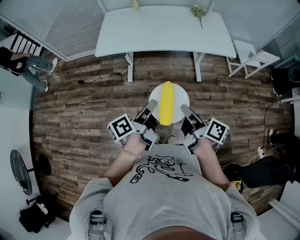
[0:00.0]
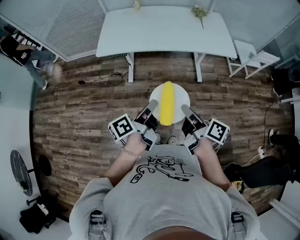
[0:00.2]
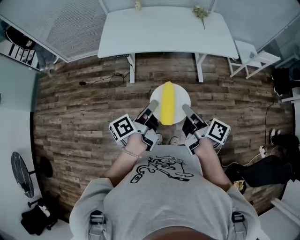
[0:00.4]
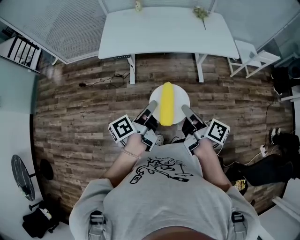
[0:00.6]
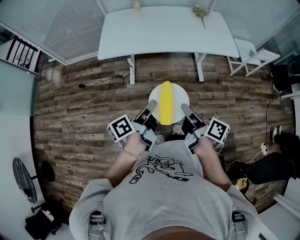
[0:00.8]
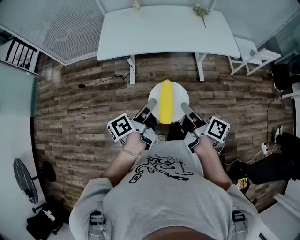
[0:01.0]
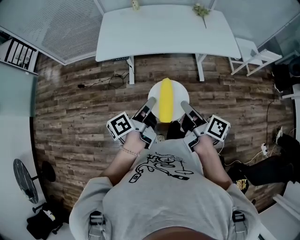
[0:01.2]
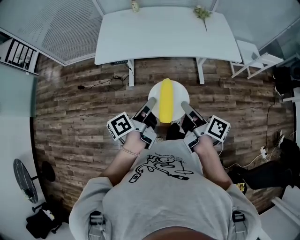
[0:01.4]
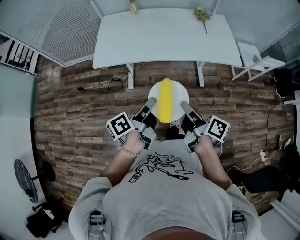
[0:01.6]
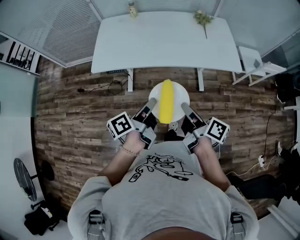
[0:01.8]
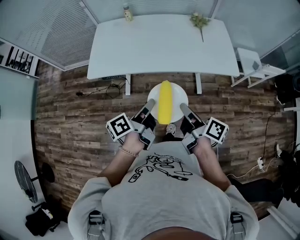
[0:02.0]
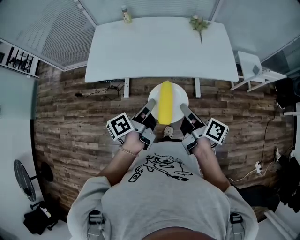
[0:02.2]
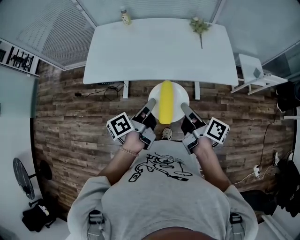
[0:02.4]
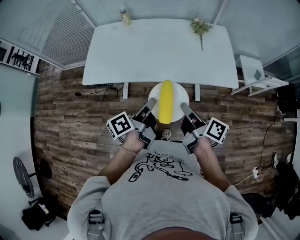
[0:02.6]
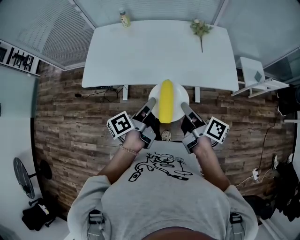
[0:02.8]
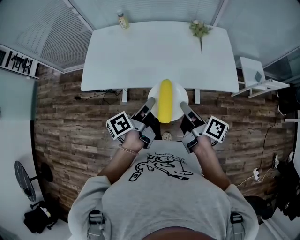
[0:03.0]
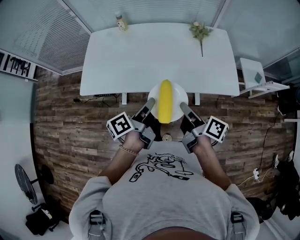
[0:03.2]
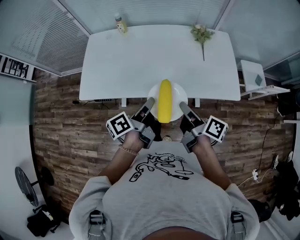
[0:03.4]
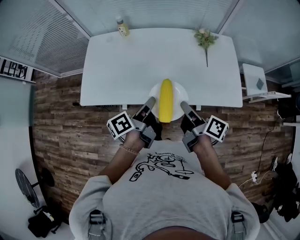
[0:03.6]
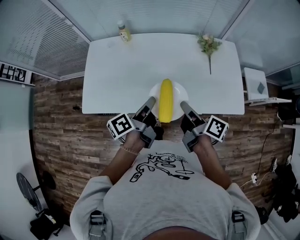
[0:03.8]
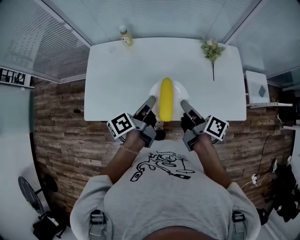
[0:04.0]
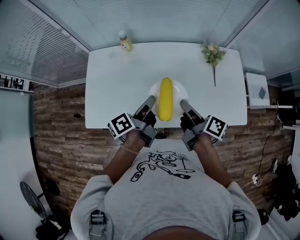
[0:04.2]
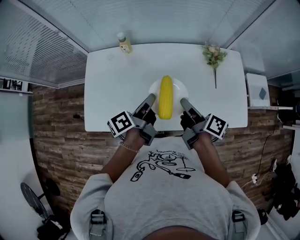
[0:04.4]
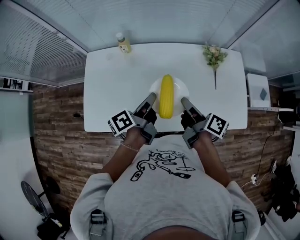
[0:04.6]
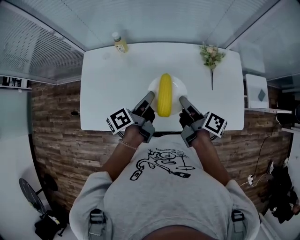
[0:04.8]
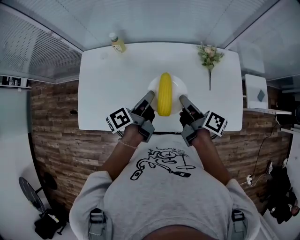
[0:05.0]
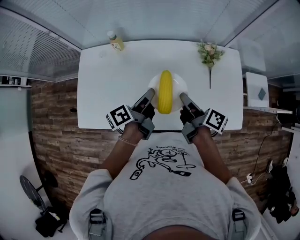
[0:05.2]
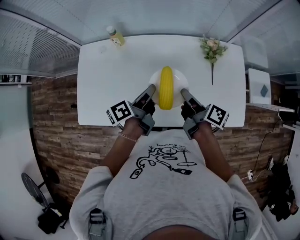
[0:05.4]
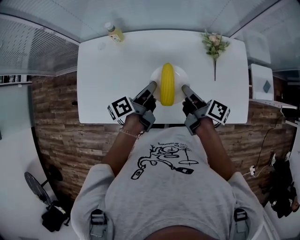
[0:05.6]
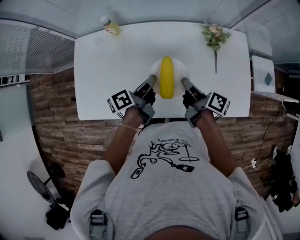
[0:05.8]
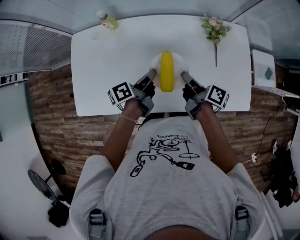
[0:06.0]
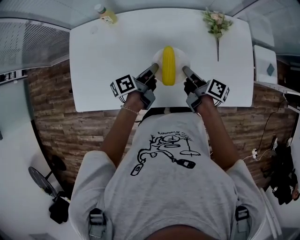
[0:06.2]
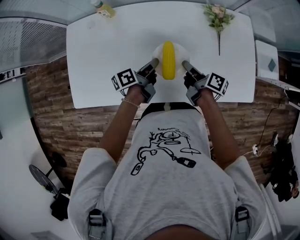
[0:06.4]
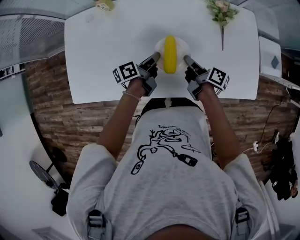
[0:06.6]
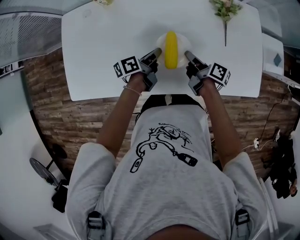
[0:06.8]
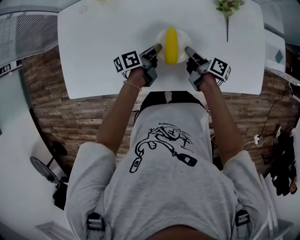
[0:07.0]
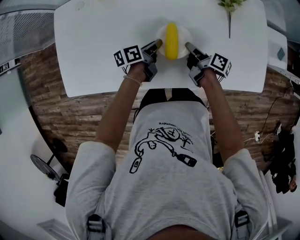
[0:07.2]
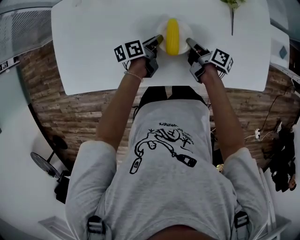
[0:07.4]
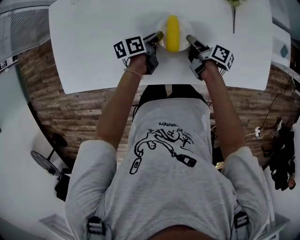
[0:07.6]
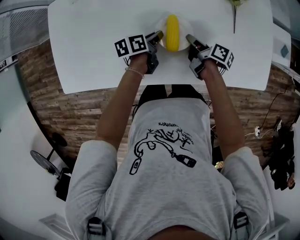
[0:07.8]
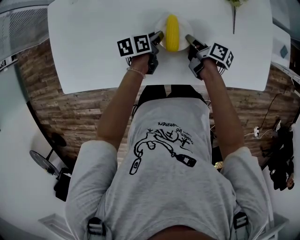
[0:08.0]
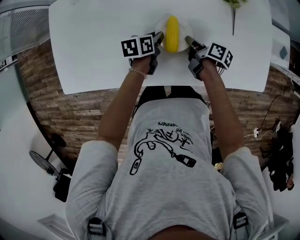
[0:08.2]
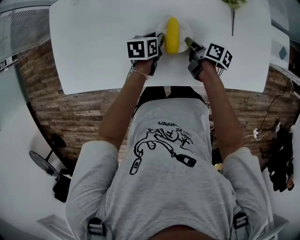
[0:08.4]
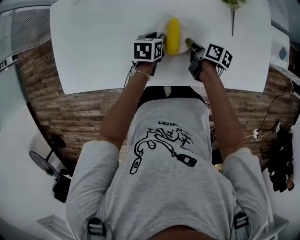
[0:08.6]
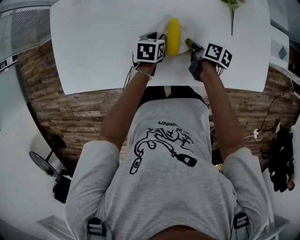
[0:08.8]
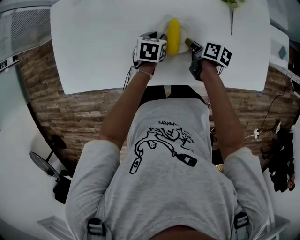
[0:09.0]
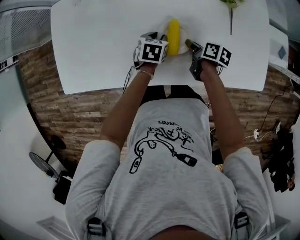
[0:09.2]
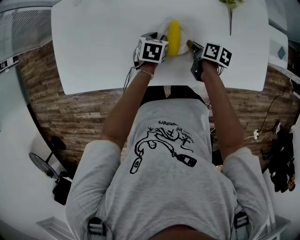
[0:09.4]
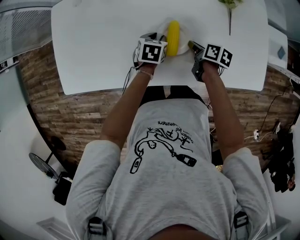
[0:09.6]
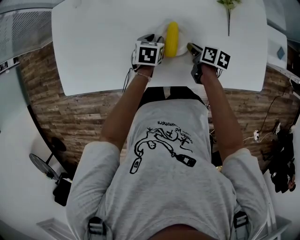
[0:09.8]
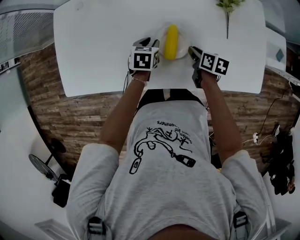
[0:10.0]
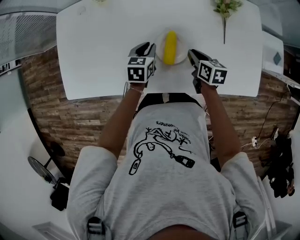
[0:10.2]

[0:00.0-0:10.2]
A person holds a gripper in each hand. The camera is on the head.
0:00.0 to 0:01.4: Both grippers move forward, roughly 10 cm.
0:01.4 to 0:03.0: The two grippers go about 30 cm forward and to the right.
0:03.0 to 0:04.4: The grippers both shift forward by some 30 cm.
0:04.4 to 0:05.8: The right gripper heads downward, to the right and forward, covering about 10 cm. The left gripper travels downward and to the right by some 10 cm.
0:05.8 to 0:07.2: The two grippers go about 20 cm downward.
0:07.2 to 0:08.8: The right gripper changes its angle by some 20 degrees. Meanwhile the left gripper rotates roughly 50 degrees.
0:08.8 to 0:10.2: The two grippers go some 5 cm upward. The right gripper turns by roughly 30 degrees.

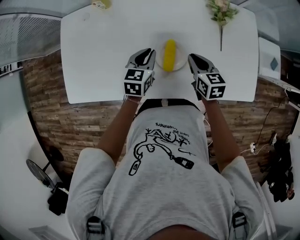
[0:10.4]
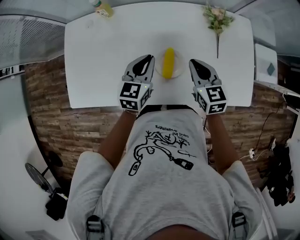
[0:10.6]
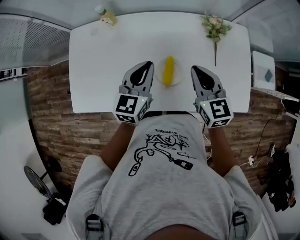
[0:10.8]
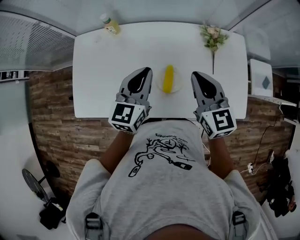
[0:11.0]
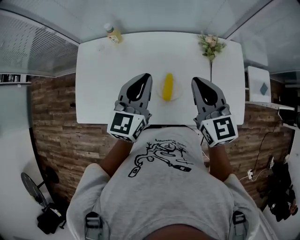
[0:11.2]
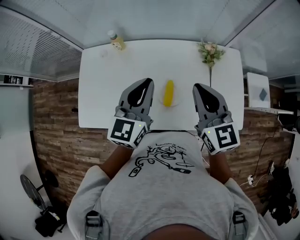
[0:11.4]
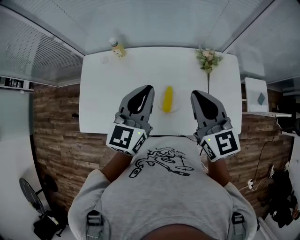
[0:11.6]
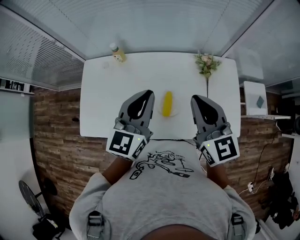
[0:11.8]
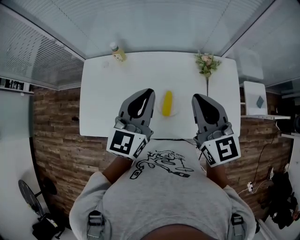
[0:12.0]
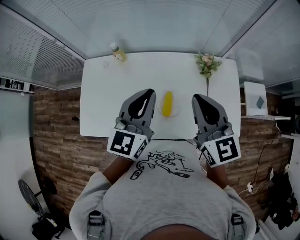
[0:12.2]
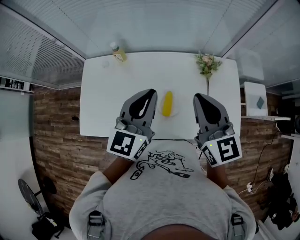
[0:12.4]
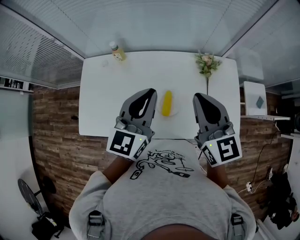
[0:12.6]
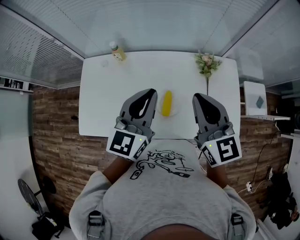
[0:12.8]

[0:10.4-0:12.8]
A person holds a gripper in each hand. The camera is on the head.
0:10.4 to 0:11.6: The grippers both shift upward by some 30 cm. The left gripper rotates approximately 30 degrees, while the right gripper changes its angle by about 30 degrees.
0:11.6 to 0:12.8: The grippers move only a little.

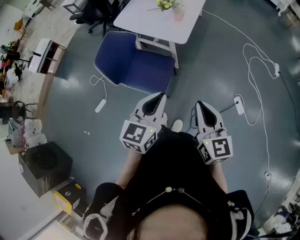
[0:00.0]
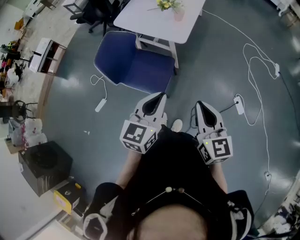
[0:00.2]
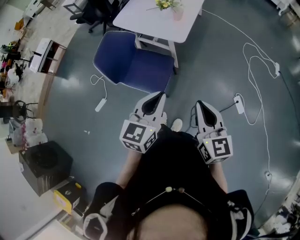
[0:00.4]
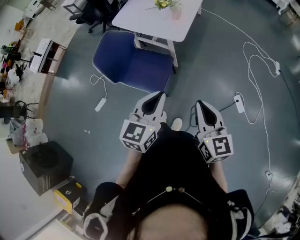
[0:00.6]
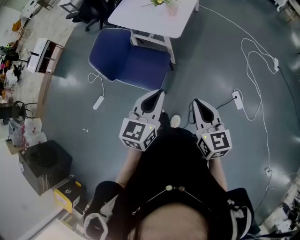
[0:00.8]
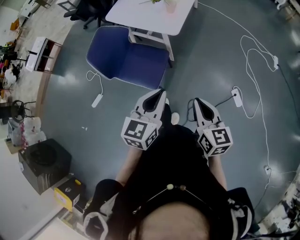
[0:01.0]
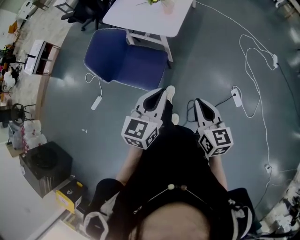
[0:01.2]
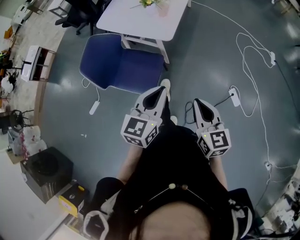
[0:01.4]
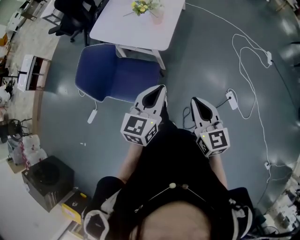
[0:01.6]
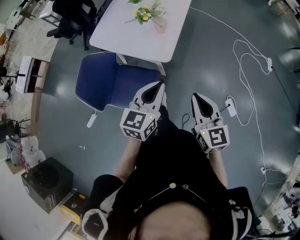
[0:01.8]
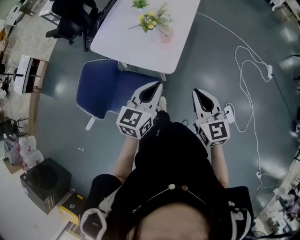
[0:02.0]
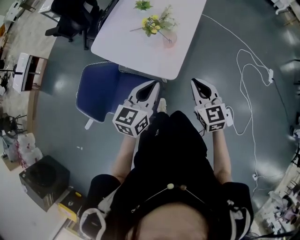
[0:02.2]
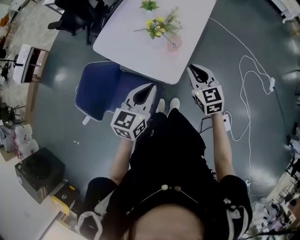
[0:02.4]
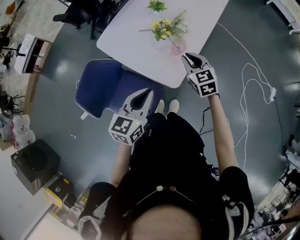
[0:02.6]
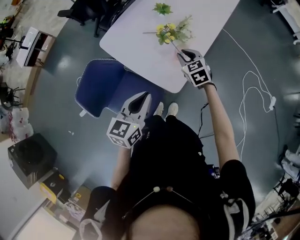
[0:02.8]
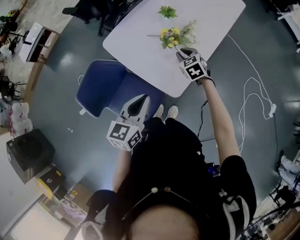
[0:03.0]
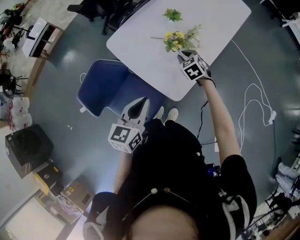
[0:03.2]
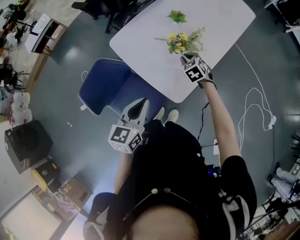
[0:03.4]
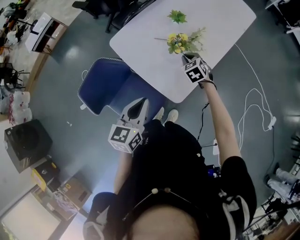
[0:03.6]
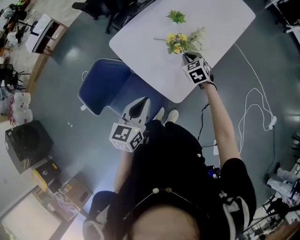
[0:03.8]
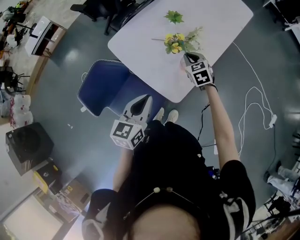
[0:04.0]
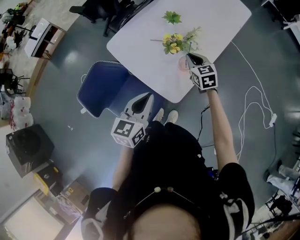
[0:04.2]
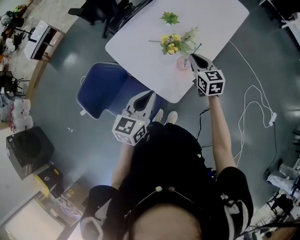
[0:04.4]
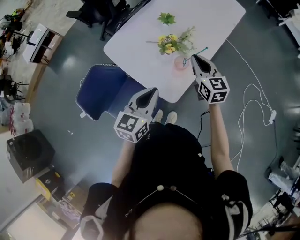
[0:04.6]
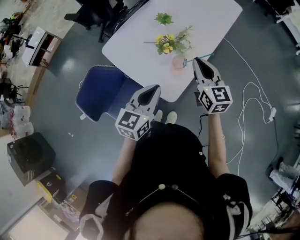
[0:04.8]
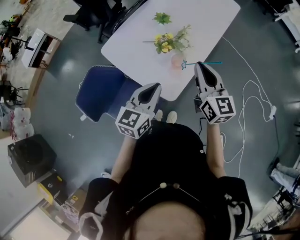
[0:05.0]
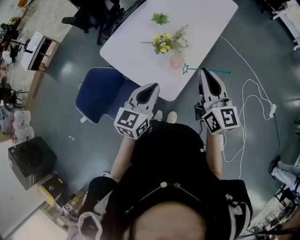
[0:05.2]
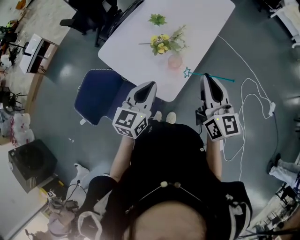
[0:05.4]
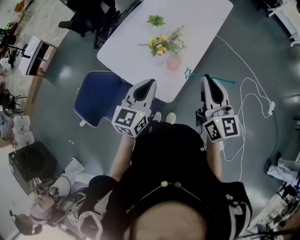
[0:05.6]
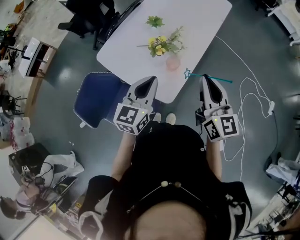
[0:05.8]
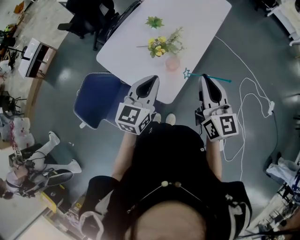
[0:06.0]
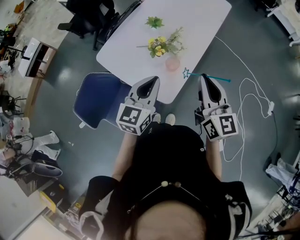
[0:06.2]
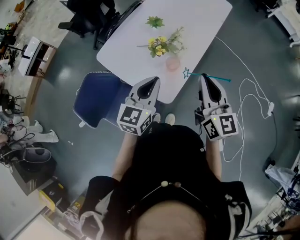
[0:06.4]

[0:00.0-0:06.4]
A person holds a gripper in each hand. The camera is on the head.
0:00.0 to 0:01.6: The right gripper moves forward, downward and to the right, roughly 15 cm, while the left gripper shifts roughly 15 cm forward and to the right.
0:01.6 to 0:03.2: The right gripper is displaced forward by about 50 cm, points its fingers some 30 degrees further downward, and opens up. The left gripper is displaced forward by about 25 cm, and rotates some 30 degrees.
0:03.2 to 0:04.8: The left gripper shifts about 5 cm to the right. The right gripper is displaced upward and to the right by roughly 20 cm, and tips its fingers upward by roughly 40 degrees.
0:04.8 to 0:06.4: The right gripper travels upward and backward by approximately 10 cm.

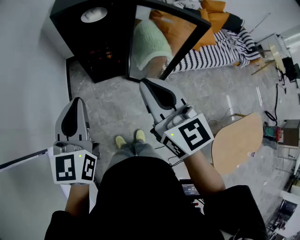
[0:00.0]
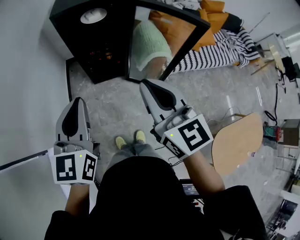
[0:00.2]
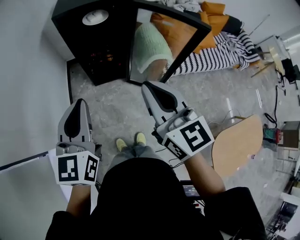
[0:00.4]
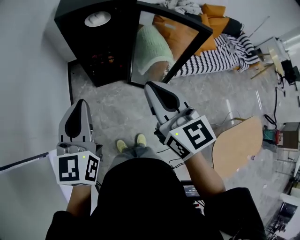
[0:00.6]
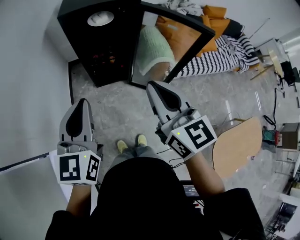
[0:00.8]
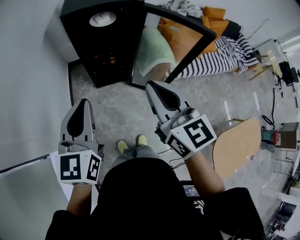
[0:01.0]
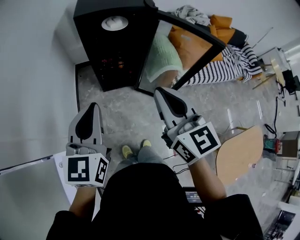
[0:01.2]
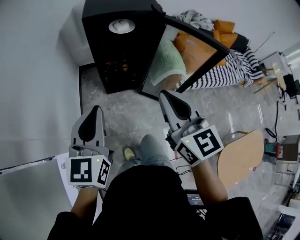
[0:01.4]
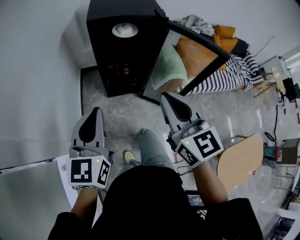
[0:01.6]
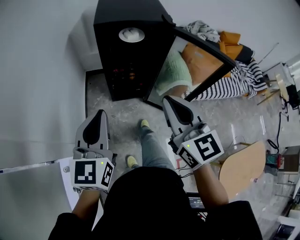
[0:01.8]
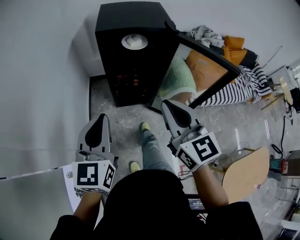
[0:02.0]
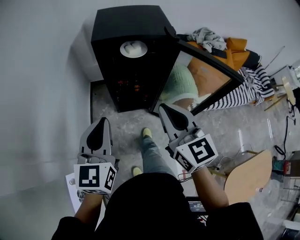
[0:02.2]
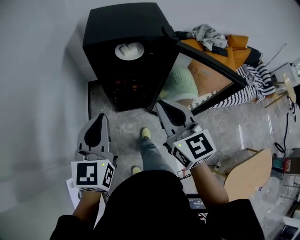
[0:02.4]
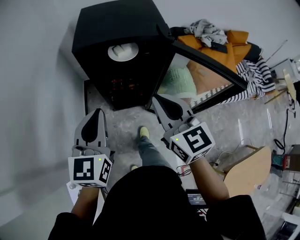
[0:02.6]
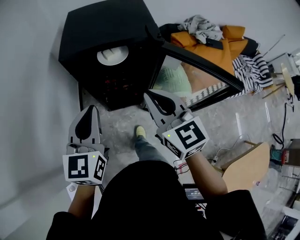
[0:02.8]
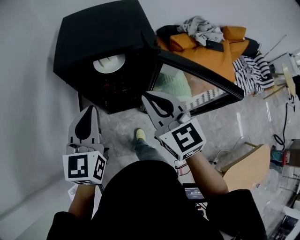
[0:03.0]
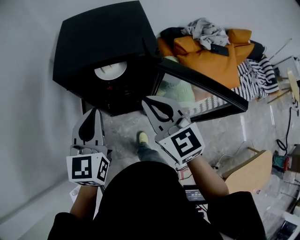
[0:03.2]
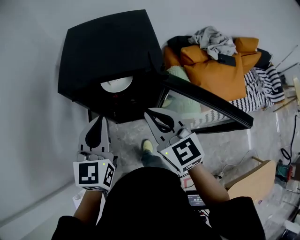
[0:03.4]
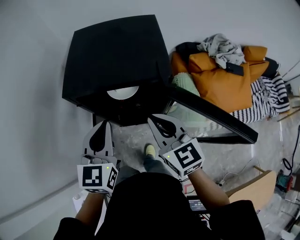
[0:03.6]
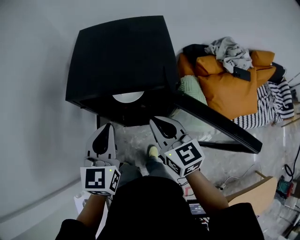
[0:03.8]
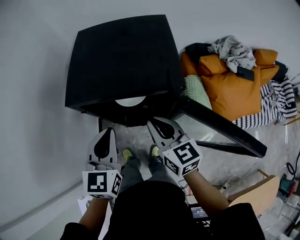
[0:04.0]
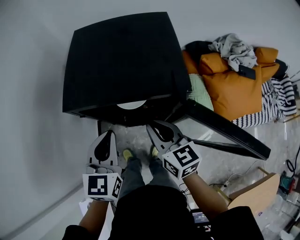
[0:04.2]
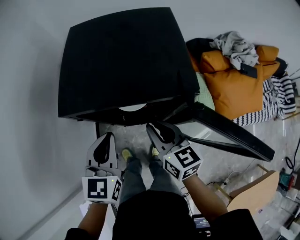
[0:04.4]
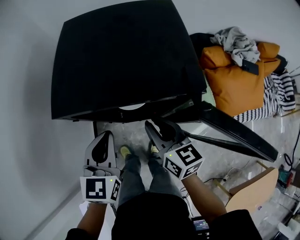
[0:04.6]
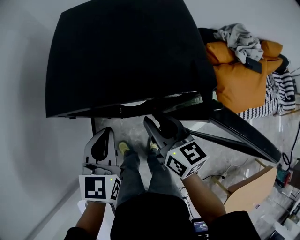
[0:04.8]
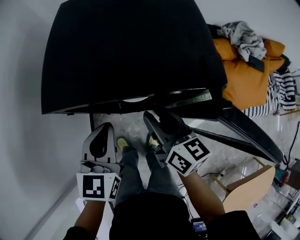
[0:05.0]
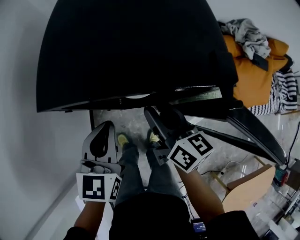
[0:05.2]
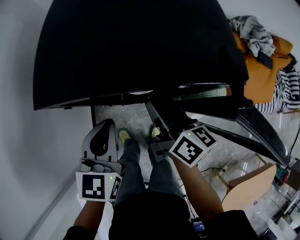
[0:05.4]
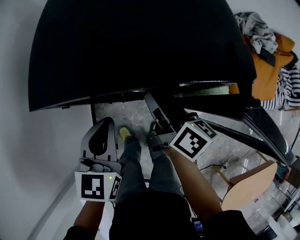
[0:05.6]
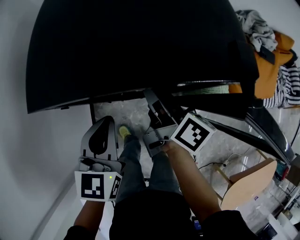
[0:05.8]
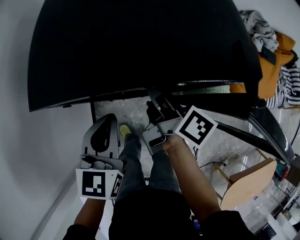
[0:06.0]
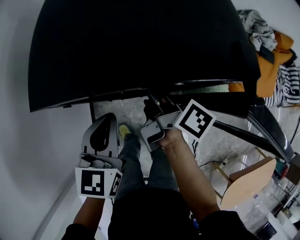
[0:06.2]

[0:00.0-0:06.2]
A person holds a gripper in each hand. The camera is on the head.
0:00.0 to 0:01.6: Both grippers move to the left, some 10 cm.
0:01.6 to 0:03.2: The left gripper moves forward and to the right, about 30 cm; the right gripper heads forward, covering some 30 cm.
0:03.2 to 0:04.6: The right gripper heads downward and forward, covering about 20 cm, and swivels some 30 degrees; the left gripper goes about 15 cm forward and downward.
0:04.6 to 0:06.2: The left gripper moves downward, roughly 5 cm. Meanwhile the right gripper goes roughly 10 cm forward, and twists roughly 50 degrees clockwise, seen from behind.
